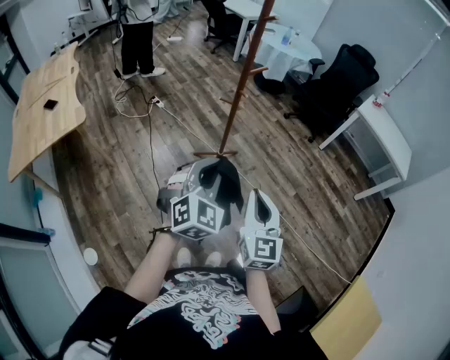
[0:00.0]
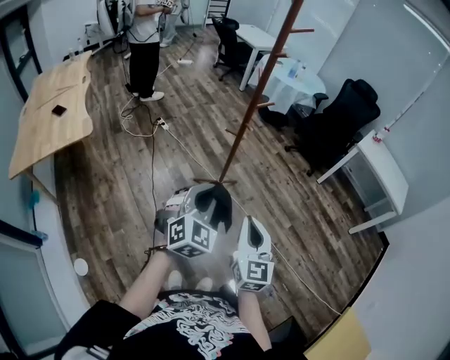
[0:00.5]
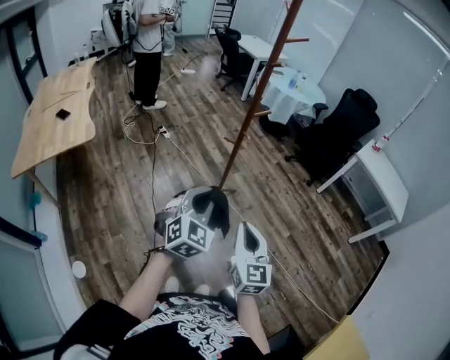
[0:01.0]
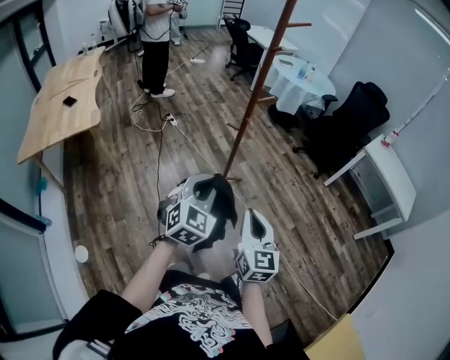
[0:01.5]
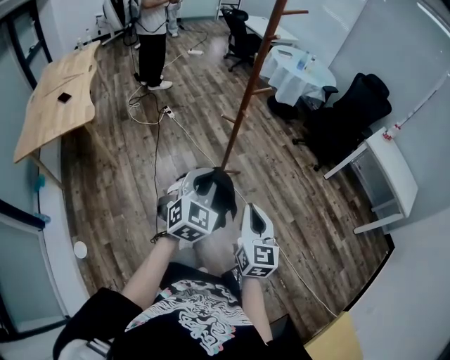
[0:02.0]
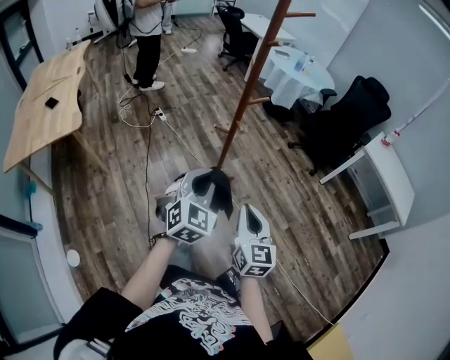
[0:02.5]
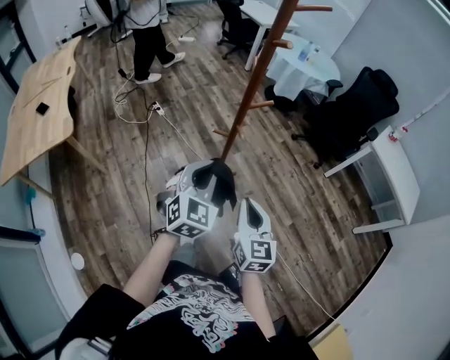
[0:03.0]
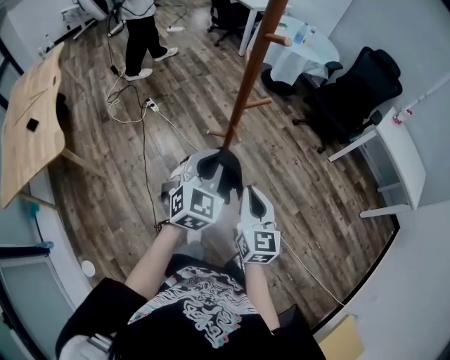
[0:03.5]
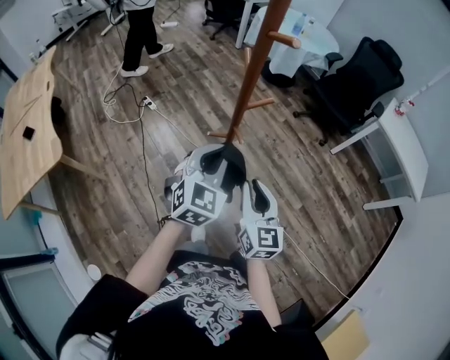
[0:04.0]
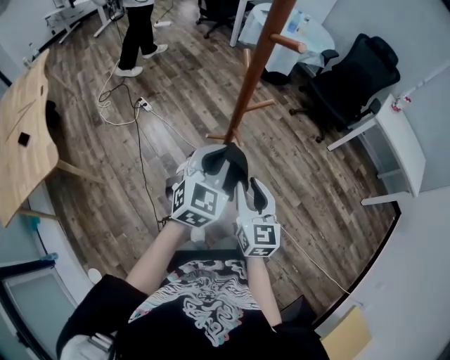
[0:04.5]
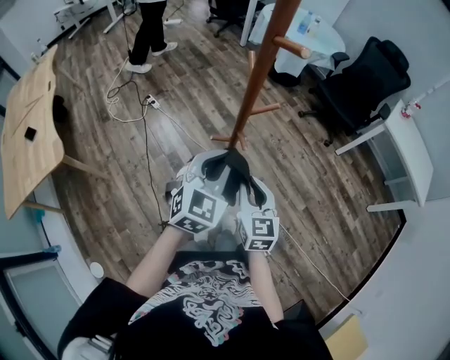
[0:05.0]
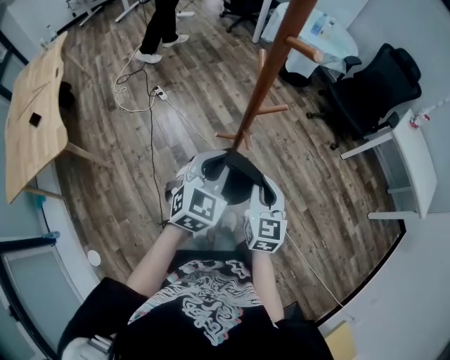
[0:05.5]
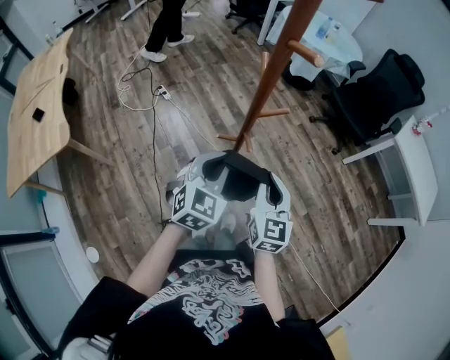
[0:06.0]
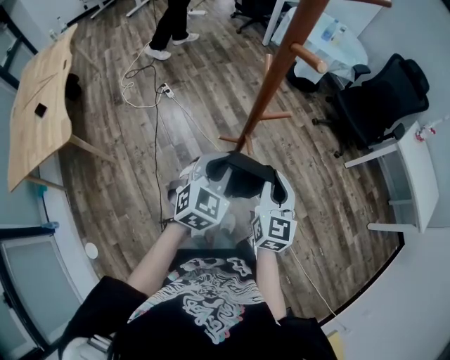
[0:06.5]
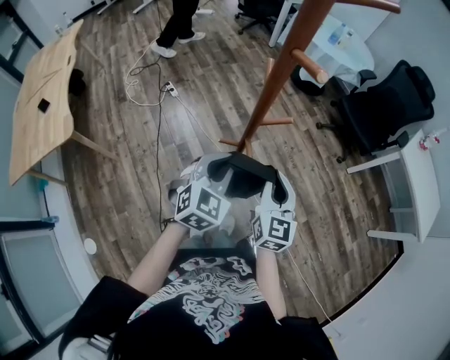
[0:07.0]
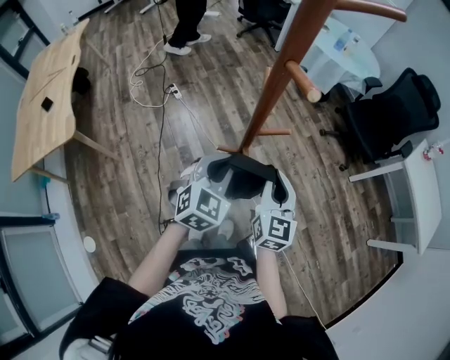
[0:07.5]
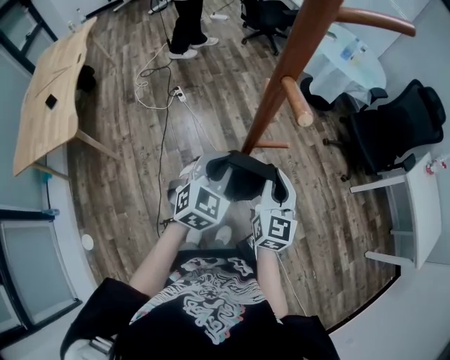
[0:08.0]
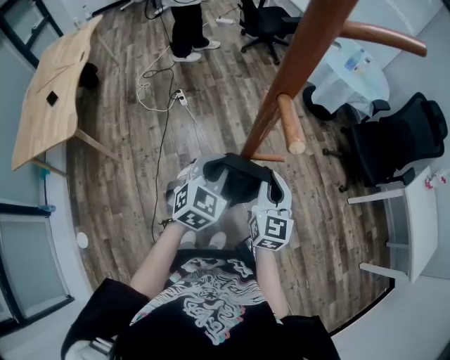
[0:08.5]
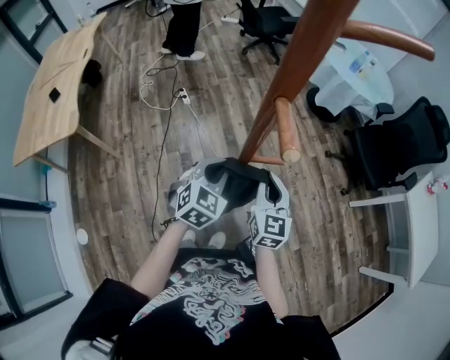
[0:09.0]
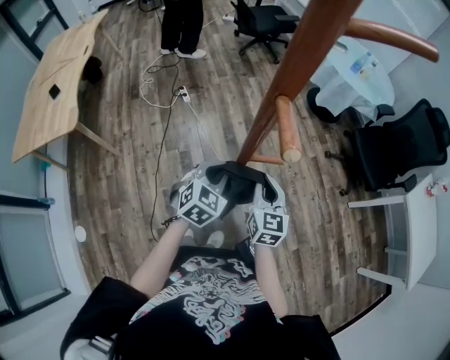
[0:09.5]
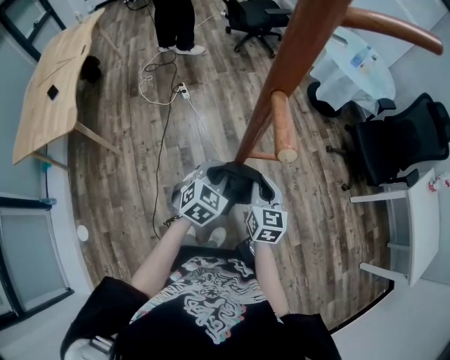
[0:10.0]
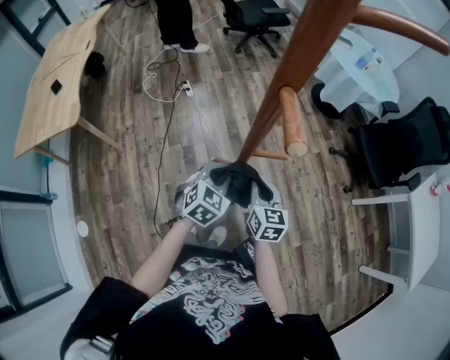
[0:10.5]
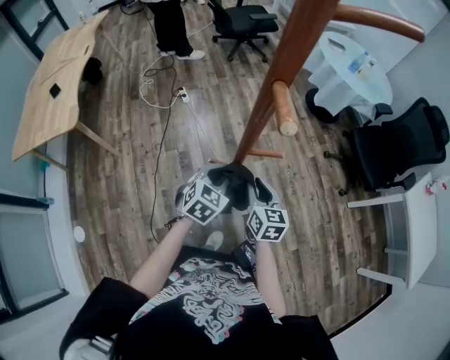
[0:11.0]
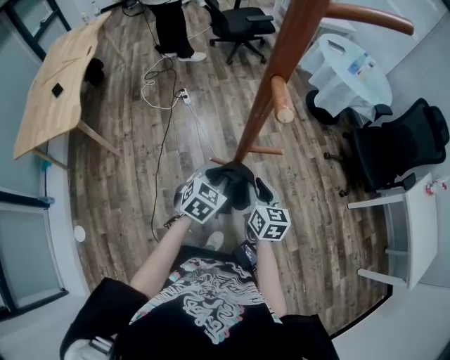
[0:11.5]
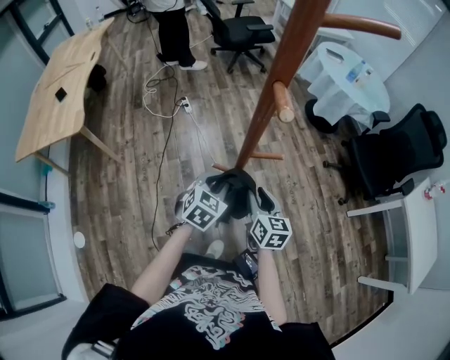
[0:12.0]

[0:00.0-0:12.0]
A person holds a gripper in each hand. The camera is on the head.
0:00.0 to 0:02.0: The left gripper moves about 5 cm; the right gripper changes place by approximately 5 cm.
0:02.0 to 0:04.0: The grippers both shift forward by approximately 35 cm.
0:04.0 to 0:06.0: The right gripper heads forward, covering roughly 5 cm.
0:06.0 to 0:08.0: Both grippers travel together forward, roughly 10 cm.
0:08.0 to 0:10.0: Both grippers travel together downward, some 10 cm.
0:10.0 to 0:12.0: The right gripper opens.

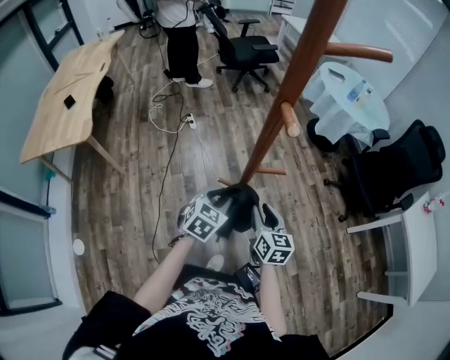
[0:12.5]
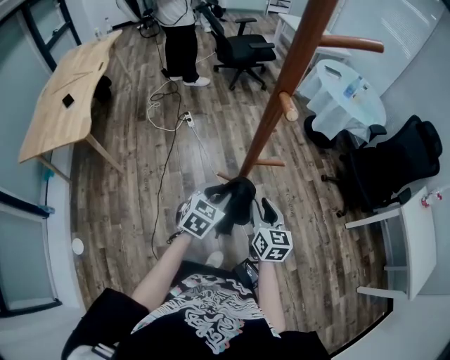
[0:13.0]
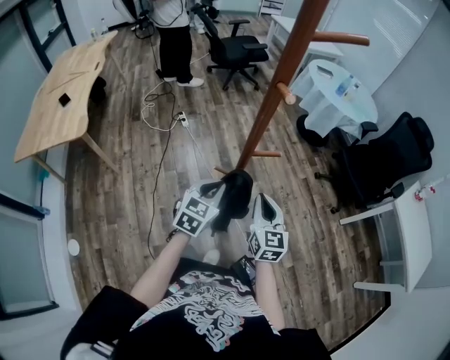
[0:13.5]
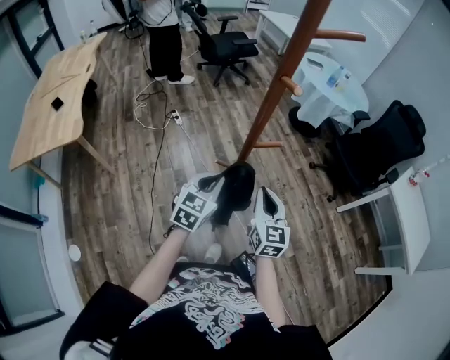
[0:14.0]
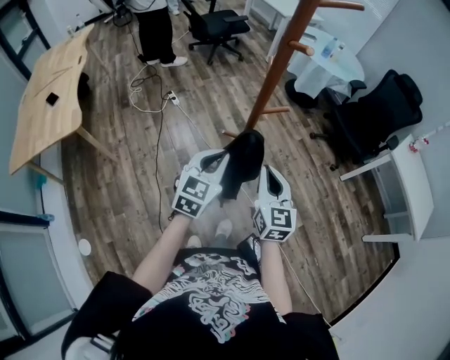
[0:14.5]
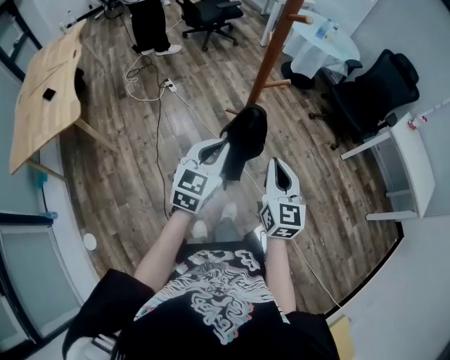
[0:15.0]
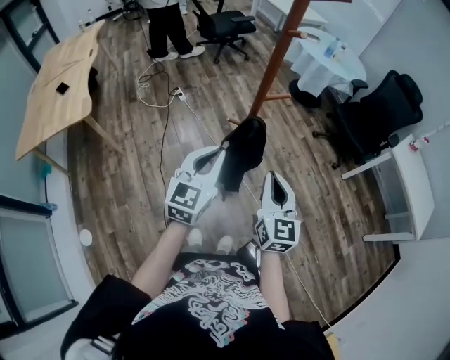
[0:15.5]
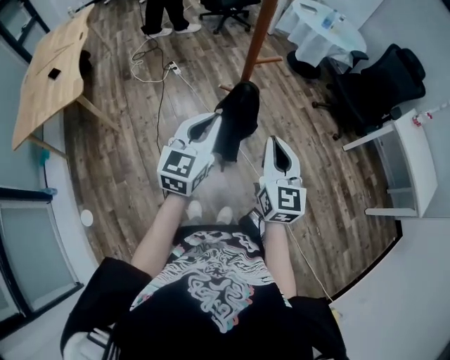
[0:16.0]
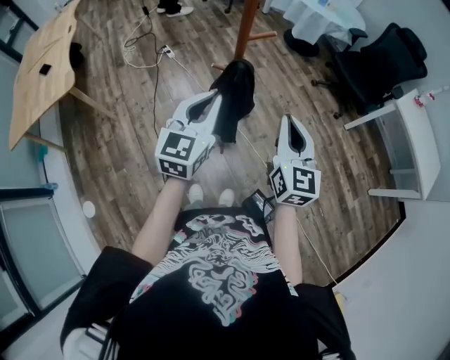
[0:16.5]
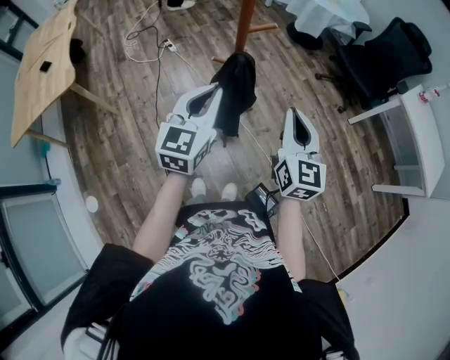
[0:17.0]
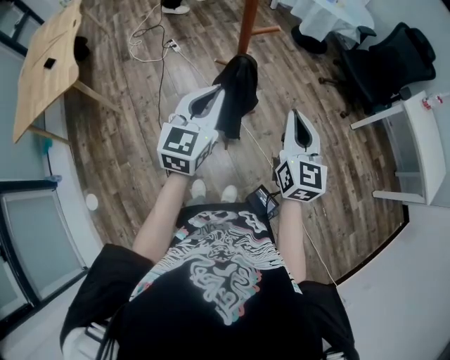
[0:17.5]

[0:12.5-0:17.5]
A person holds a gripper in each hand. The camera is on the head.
0:12.5 to 0:15.0: The grippers both shift backward and upward by about 25 cm. The left gripper changes its angle by some 20 degrees, and closes up, while the right gripper turns by some 30 degrees, and closes its fingers.
0:15.0 to 0:17.5: The right gripper heads to the right, covering approximately 10 cm. Meanwhile the left gripper heads to the right, covering approximately 5 cm.

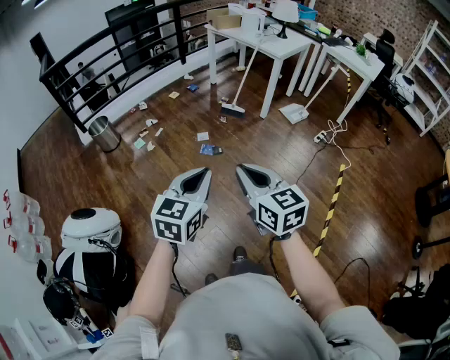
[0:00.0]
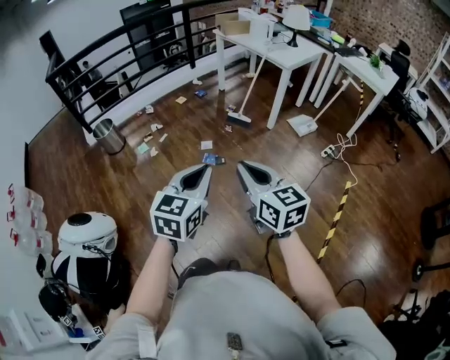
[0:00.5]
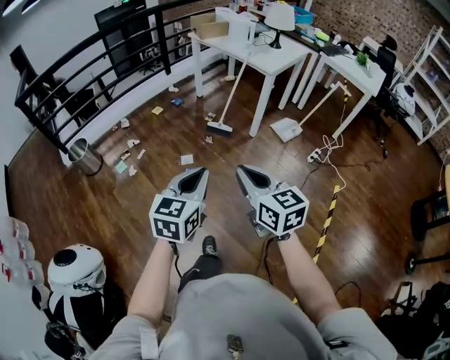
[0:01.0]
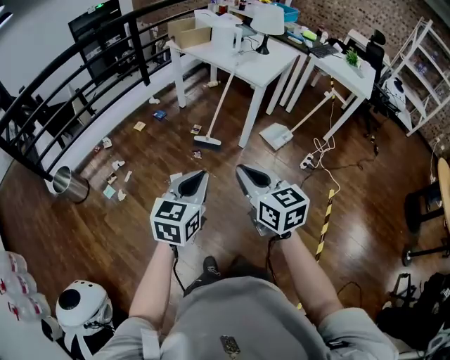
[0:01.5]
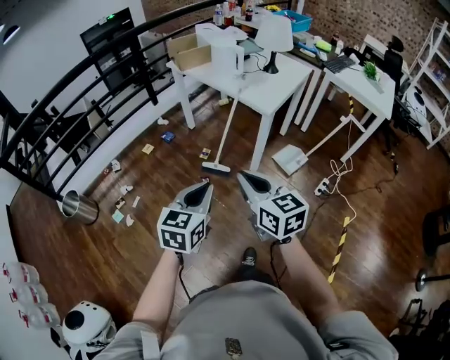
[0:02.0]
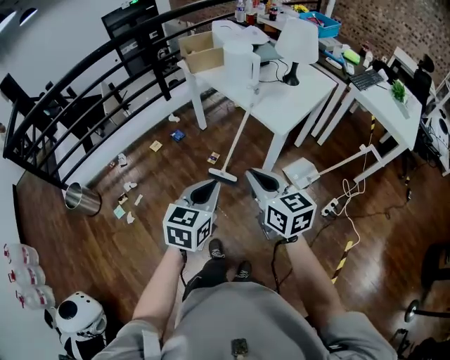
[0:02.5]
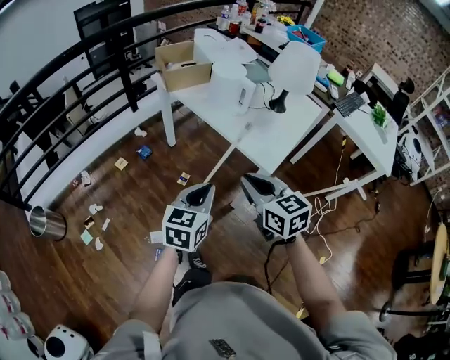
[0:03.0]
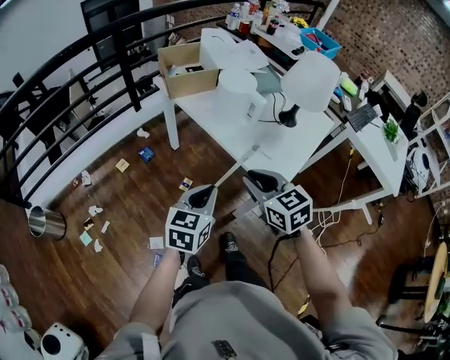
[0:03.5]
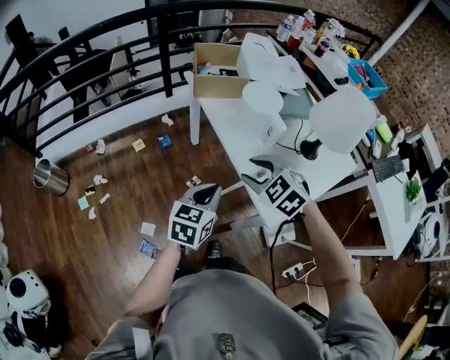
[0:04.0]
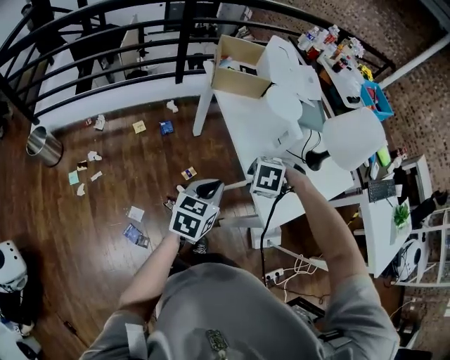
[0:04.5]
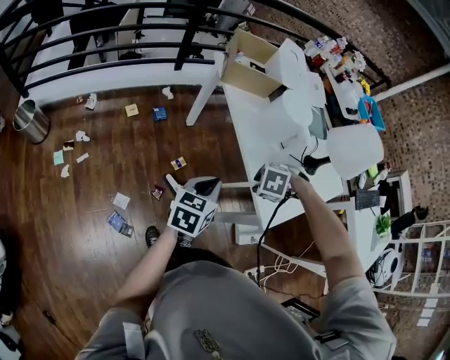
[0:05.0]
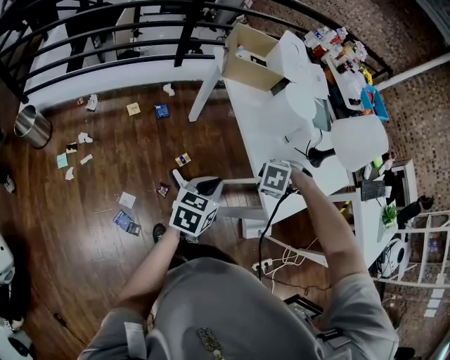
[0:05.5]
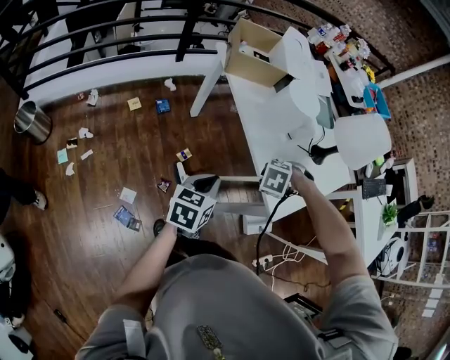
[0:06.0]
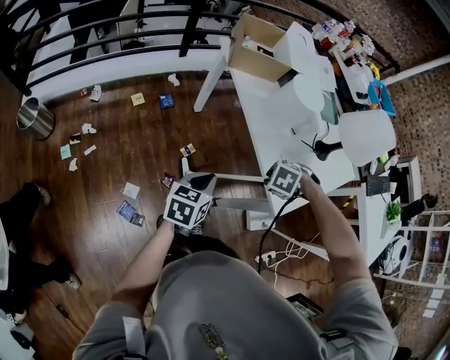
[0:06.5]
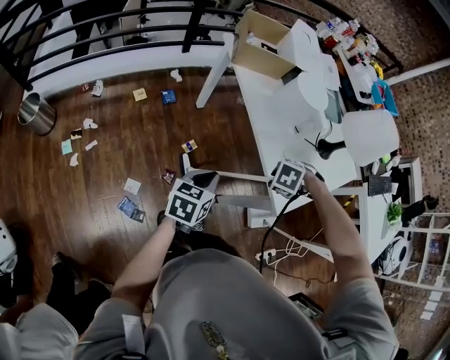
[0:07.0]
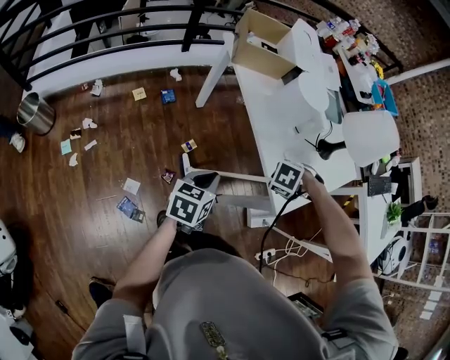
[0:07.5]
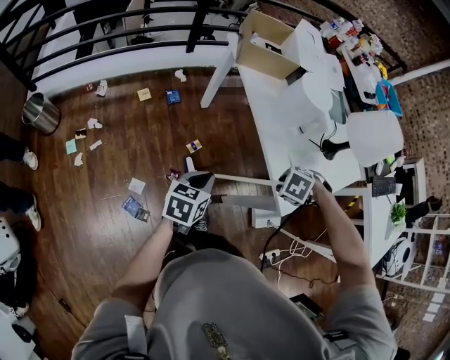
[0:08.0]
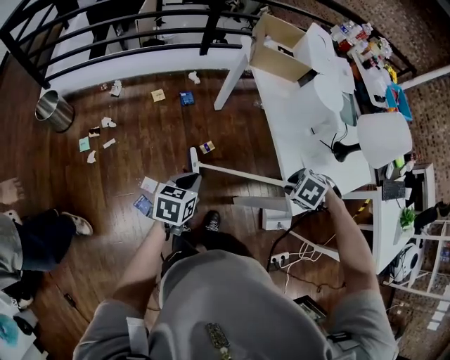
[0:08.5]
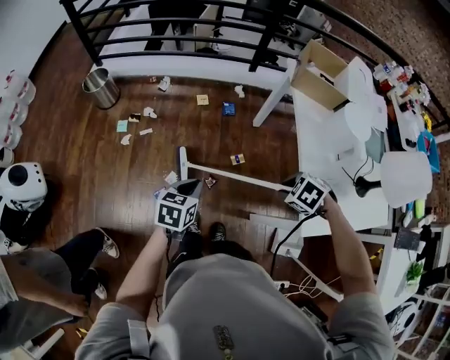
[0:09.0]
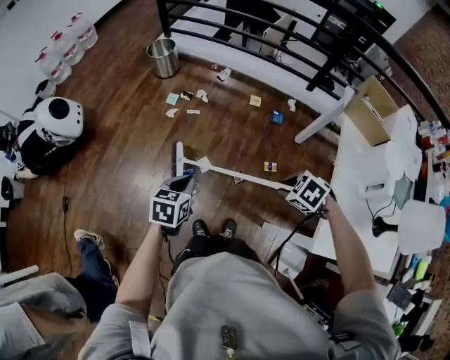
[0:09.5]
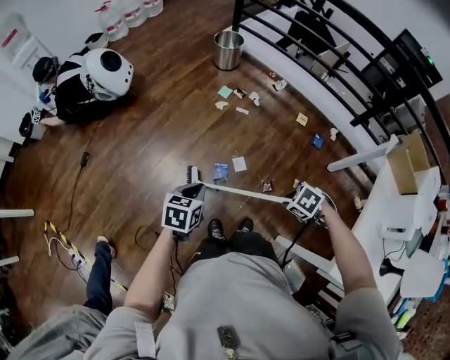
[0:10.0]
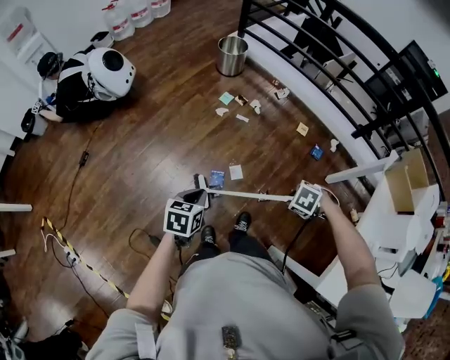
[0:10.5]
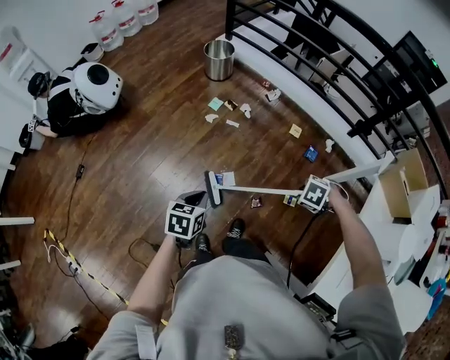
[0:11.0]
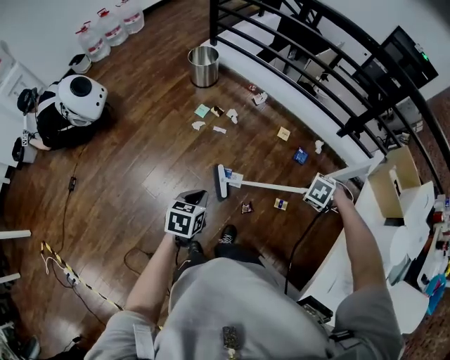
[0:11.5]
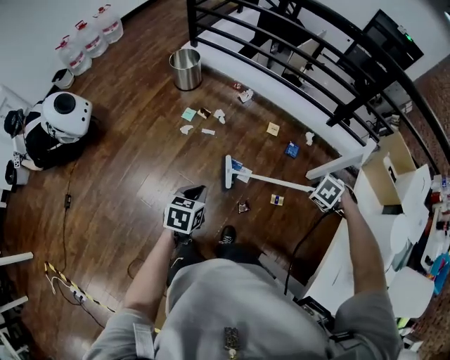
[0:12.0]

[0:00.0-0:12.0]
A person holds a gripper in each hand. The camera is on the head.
0:00.0 to 0:02.0: The left gripper shifts by about 60 cm.
0:02.0 to 0:04.0: The left gripper changes place by approximately 50 cm.
0:04.0 to 0:06.0: The left gripper is displaced downward by approximately 5 cm.
0:06.0 to 0:08.0: The left gripper shifts by roughly 5 cm.
0:08.0 to 0:10.0: The left gripper shifts by approximately 50 cm, and turns by some 60 degrees.
0:10.0 to 0:12.0: The left gripper changes place by roughly 25 cm.
